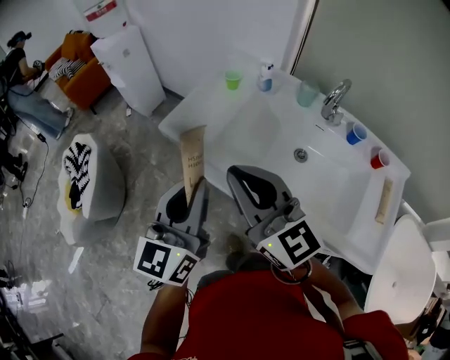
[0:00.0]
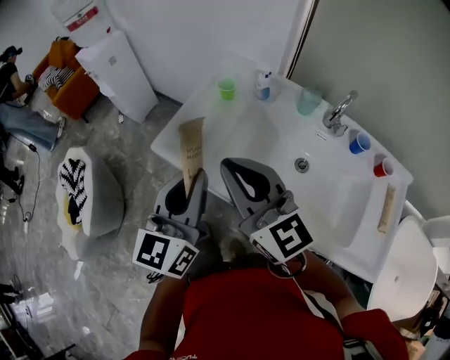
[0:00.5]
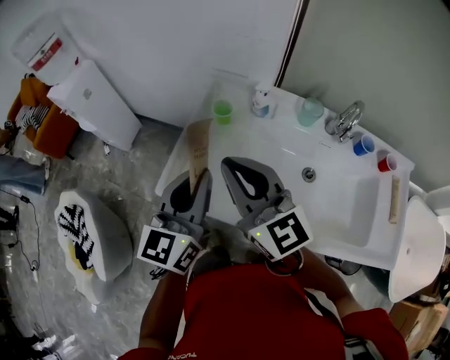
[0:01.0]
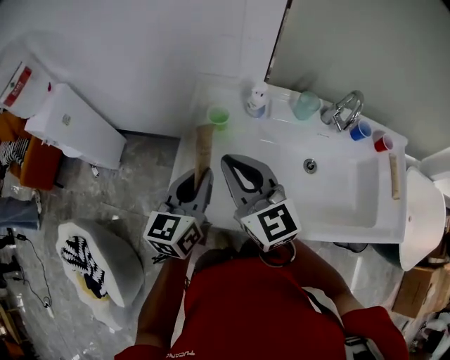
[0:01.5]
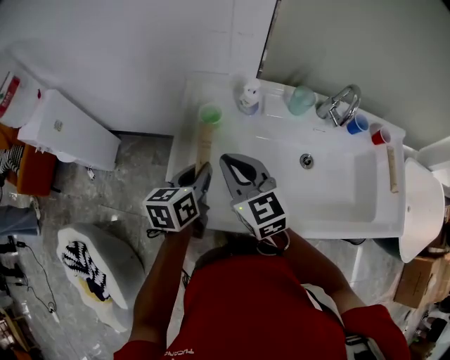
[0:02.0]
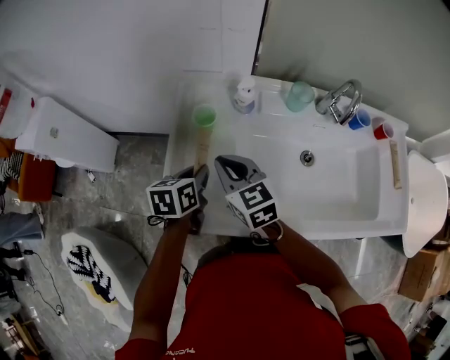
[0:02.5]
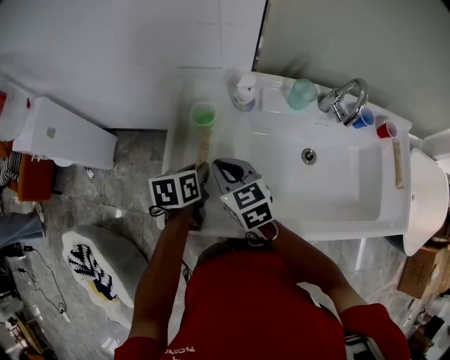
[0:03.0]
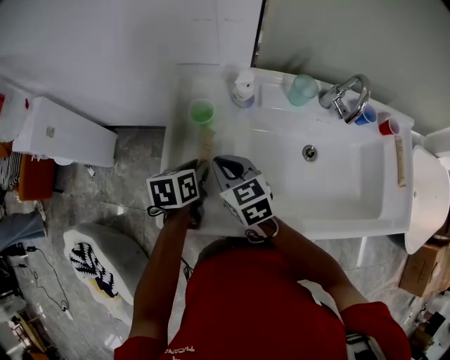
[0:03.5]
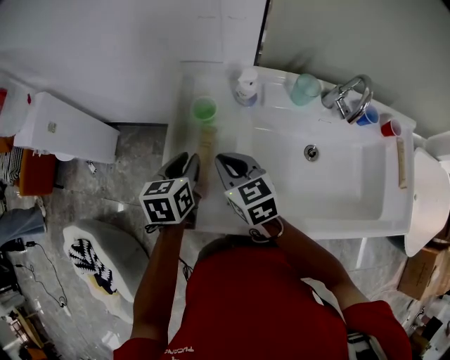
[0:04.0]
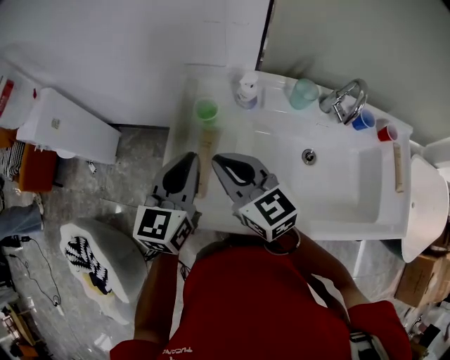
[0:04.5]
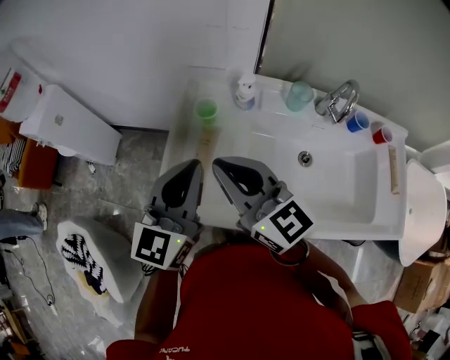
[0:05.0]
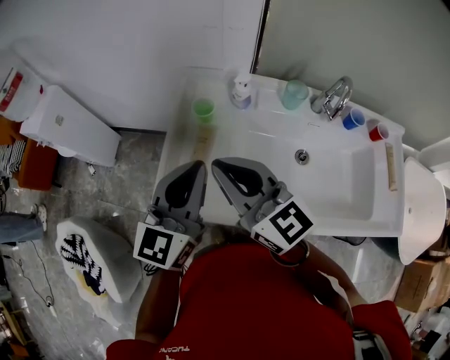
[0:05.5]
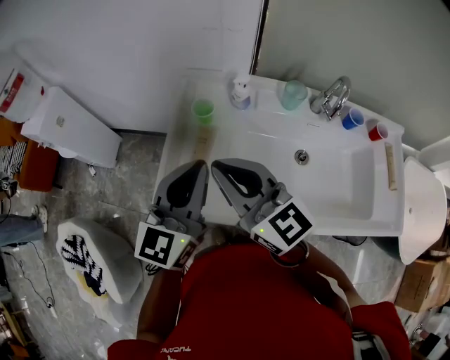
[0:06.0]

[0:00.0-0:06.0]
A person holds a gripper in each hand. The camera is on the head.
0:00.0 to 0:02.0: The left gripper changes place by some 40 cm, and angles its fingers downward, by about 30 degrees. The right gripper ends up roughly 35 cm from where it was, and swivels some 40 degrees.
0:02.0 to 0:04.0: The right gripper goes approximately 10 cm downward.
0:04.0 to 0:06.0: The two grippers go approximately 20 cm upward and backward. The right gripper angles its fingers upward, by approximately 30 degrees, while the left gripper tips its fingers upward by about 40 degrees, and closes up.

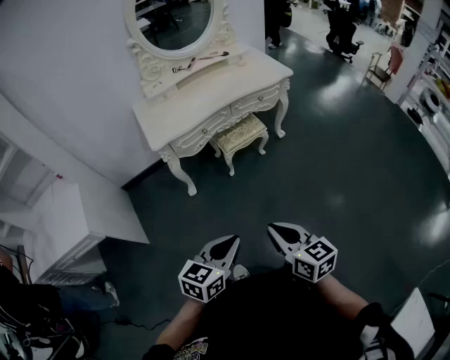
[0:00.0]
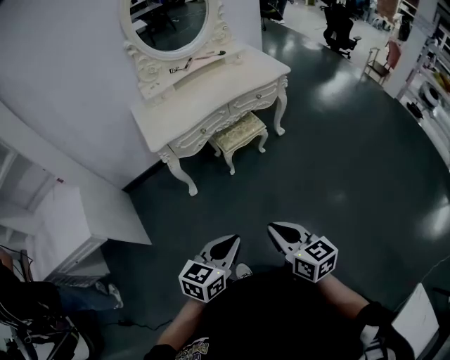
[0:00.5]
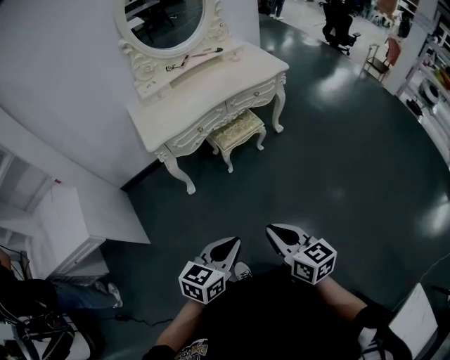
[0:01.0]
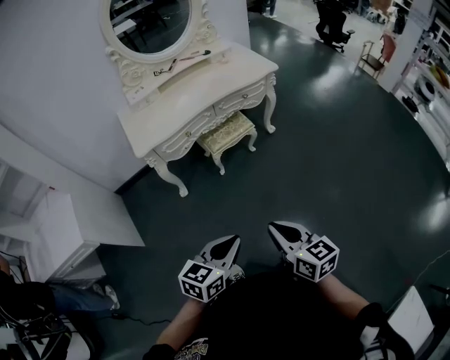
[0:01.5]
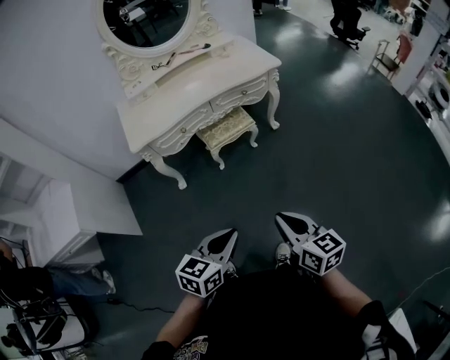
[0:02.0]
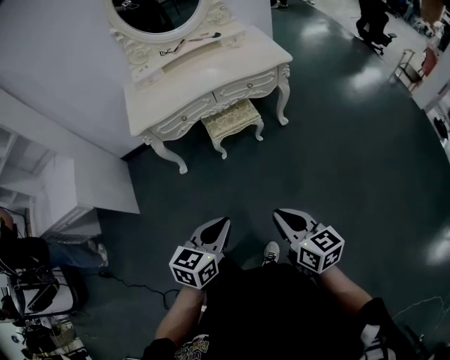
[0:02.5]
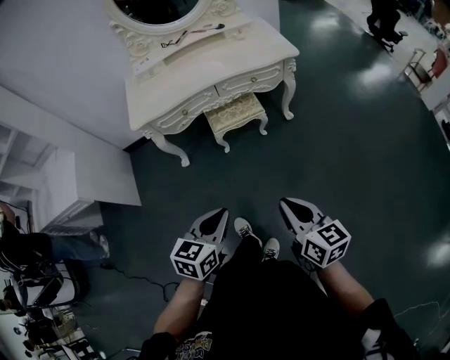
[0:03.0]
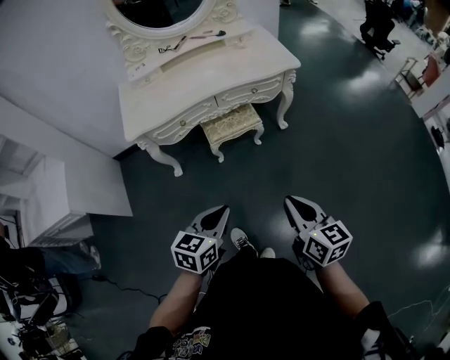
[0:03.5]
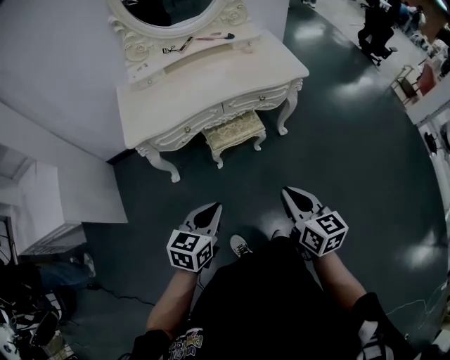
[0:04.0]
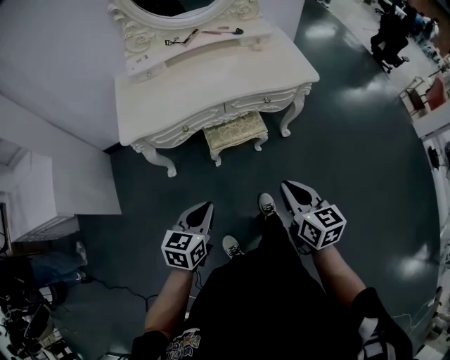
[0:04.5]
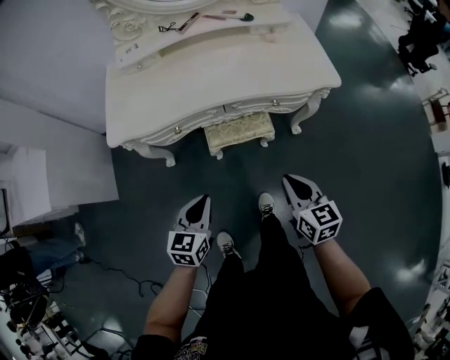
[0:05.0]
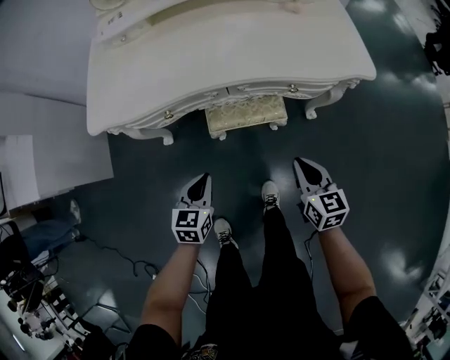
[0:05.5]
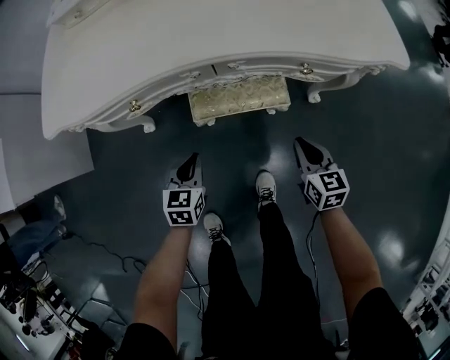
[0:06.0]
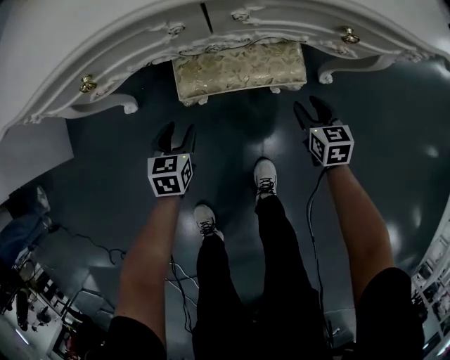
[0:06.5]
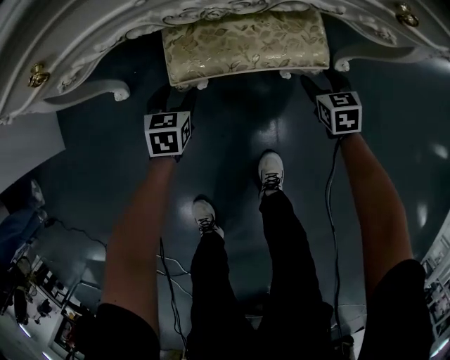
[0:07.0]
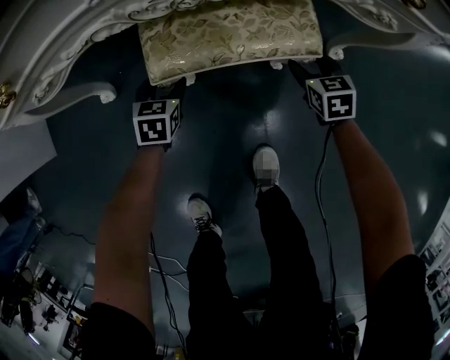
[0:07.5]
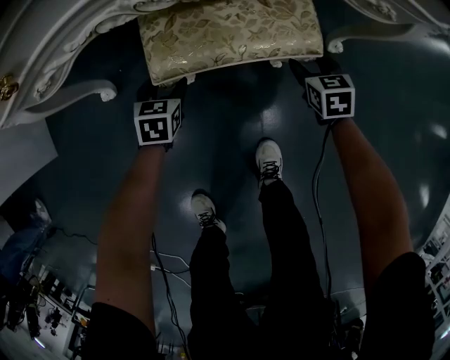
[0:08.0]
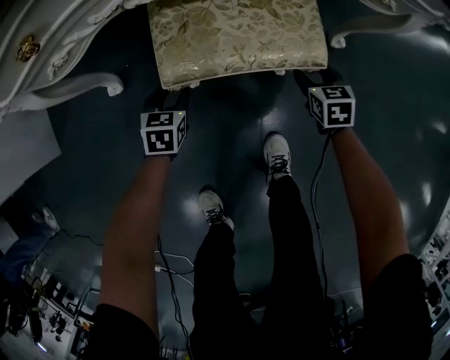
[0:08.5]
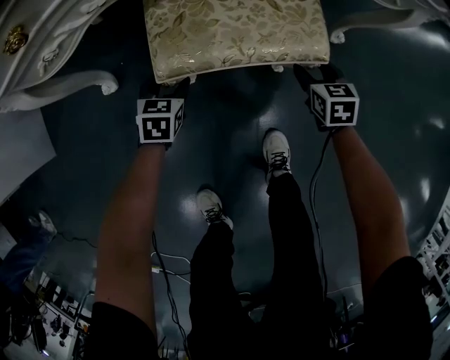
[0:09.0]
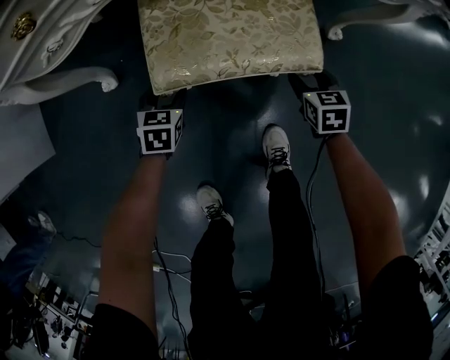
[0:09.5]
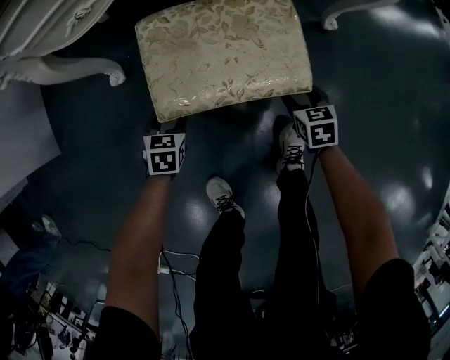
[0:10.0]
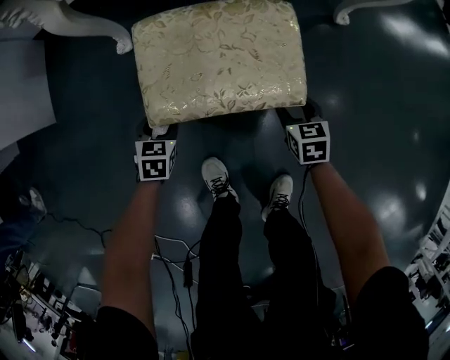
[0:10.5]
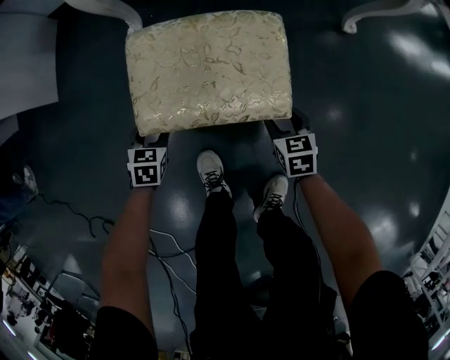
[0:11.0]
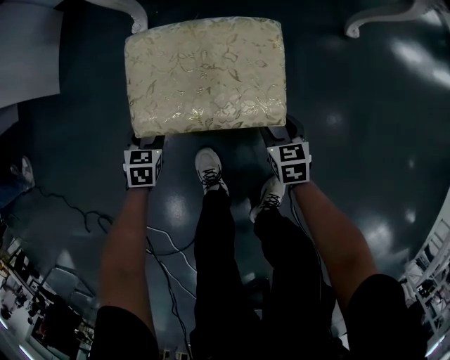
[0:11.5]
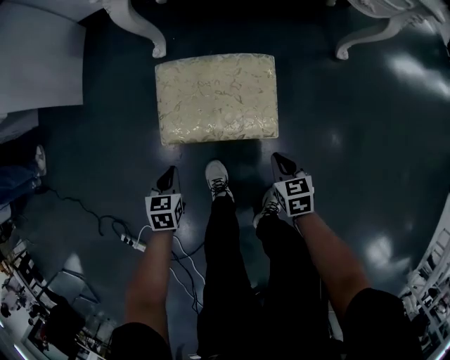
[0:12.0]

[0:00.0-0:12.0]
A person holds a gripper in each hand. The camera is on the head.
0:00.0 to 0:02.0: Both grippers travel together to the right and forward, approximately 15 cm.
0:02.0 to 0:04.0: Both grippers travel together forward, about 20 cm.
0:04.0 to 0:06.0: Both grippers travel together downward and forward, about 50 cm. The right gripper rotates approximately 20 degrees; the left gripper changes its angle by approximately 30 degrees.
0:06.0 to 0:08.0: The grippers both shift downward and forward by approximately 30 cm. The left gripper opens; the right gripper opens up.
0:08.0 to 0:10.0: The grippers move only a little.
0:10.0 to 0:12.0: The grippers both shift upward and backward by approximately 15 cm. The right gripper closes; the left gripper closes its fingers.

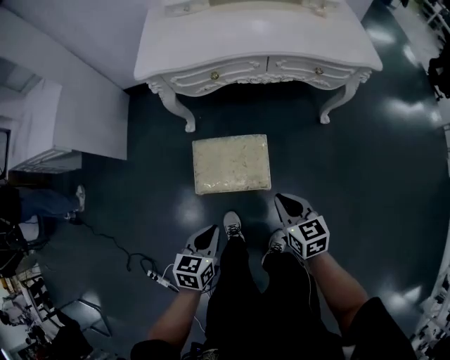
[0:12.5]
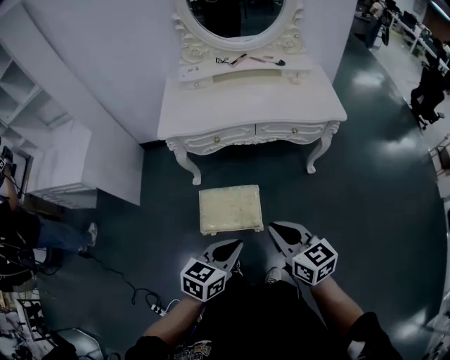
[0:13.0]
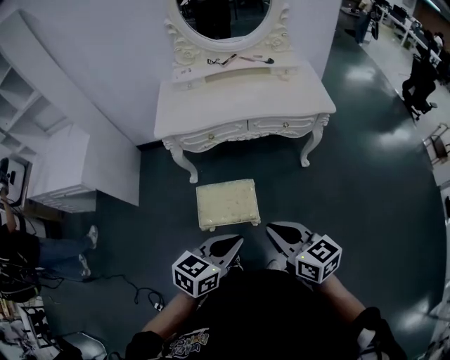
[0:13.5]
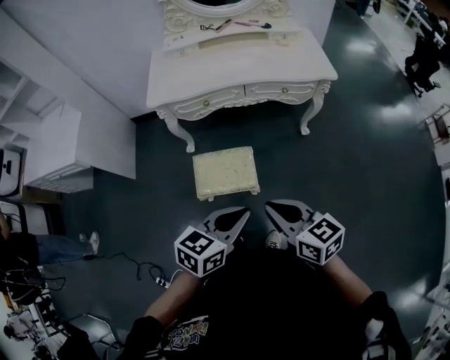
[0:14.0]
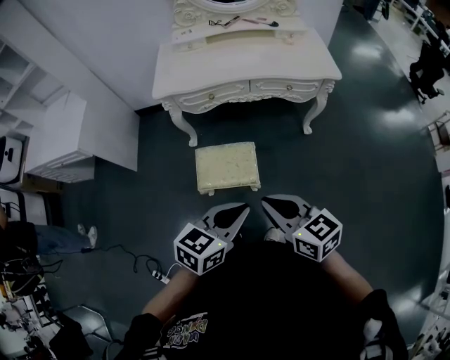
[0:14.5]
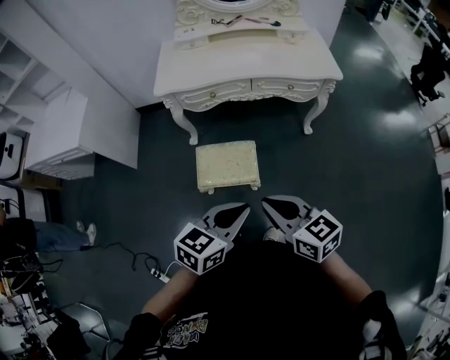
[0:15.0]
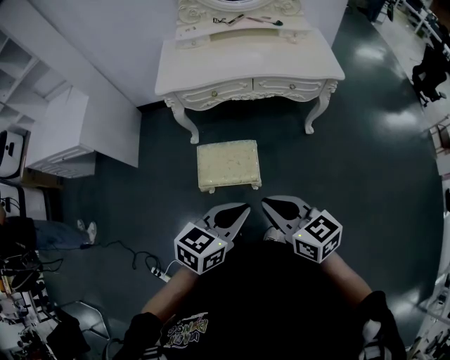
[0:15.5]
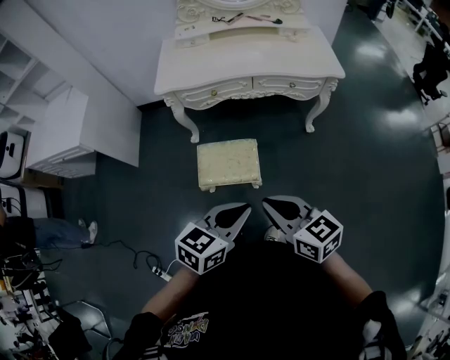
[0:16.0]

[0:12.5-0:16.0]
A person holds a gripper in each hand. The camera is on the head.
0:12.5 to 0:14.5: The right gripper is displaced upward by some 25 cm. The left gripper goes roughly 30 cm upward and to the right, and swivels some 30 degrees.
0:14.5 to 0:16.0: The two grippers keep their place.

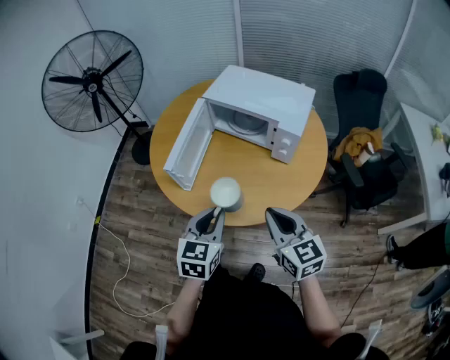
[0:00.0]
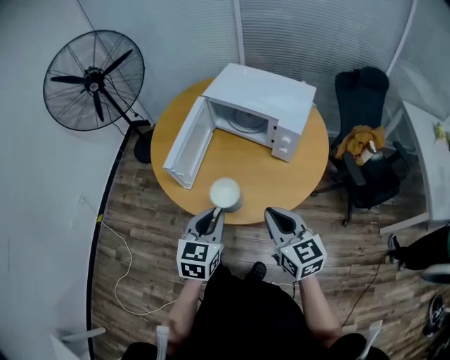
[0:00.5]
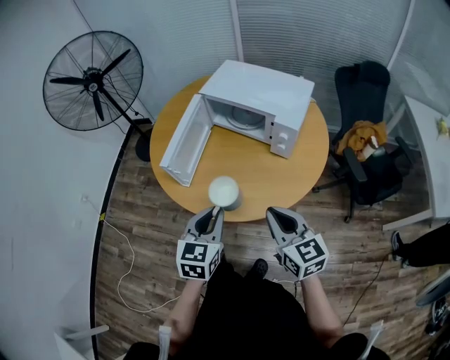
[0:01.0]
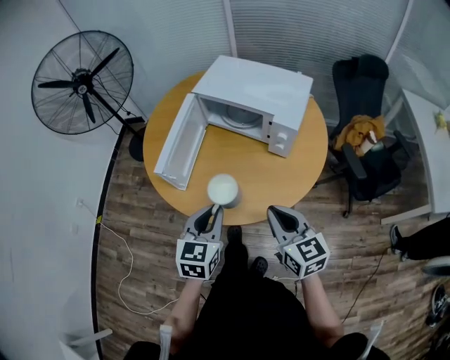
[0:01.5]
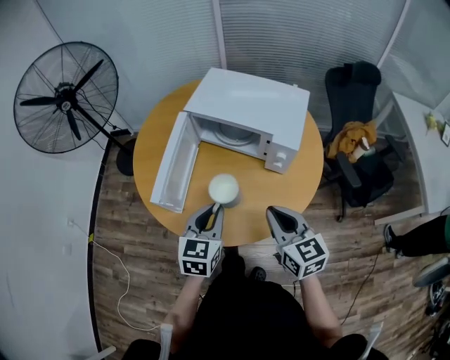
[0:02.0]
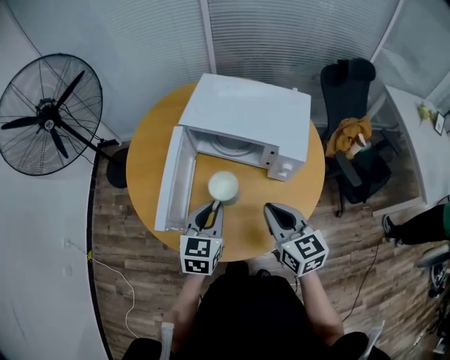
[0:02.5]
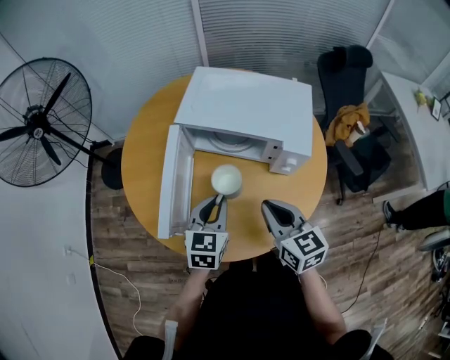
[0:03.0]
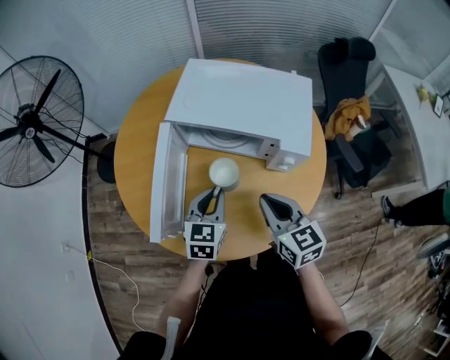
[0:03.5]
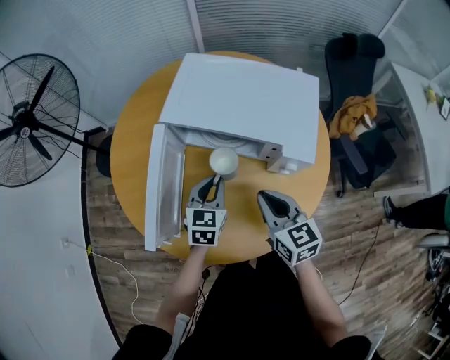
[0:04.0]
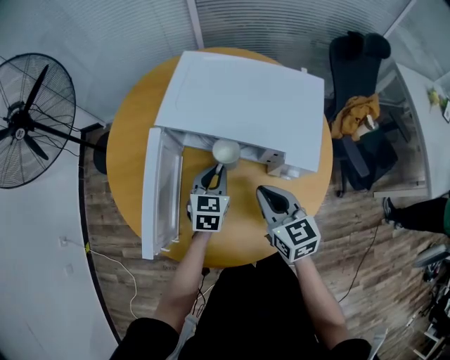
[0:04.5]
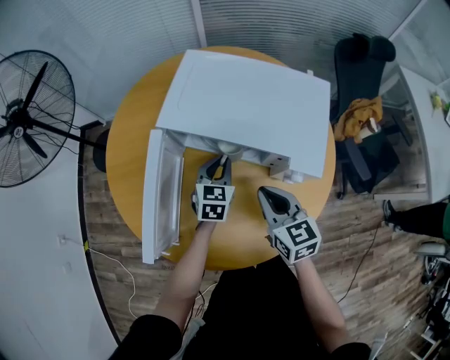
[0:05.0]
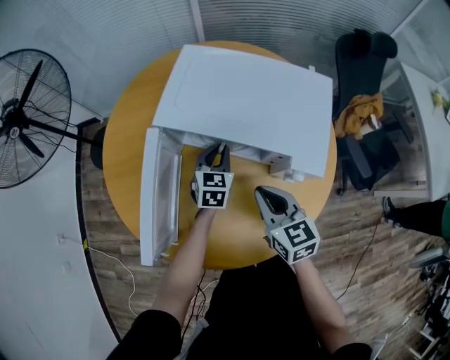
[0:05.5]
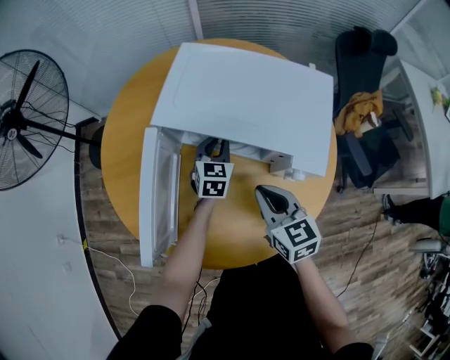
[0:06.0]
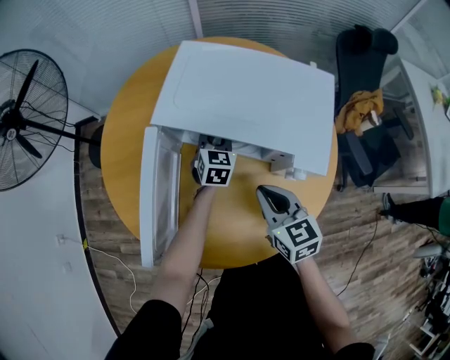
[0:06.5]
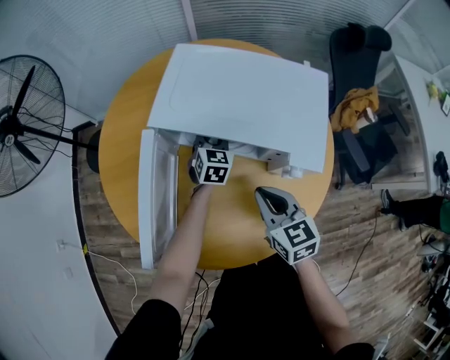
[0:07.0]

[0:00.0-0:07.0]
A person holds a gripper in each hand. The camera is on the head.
0:00.0 to 0:02.0: Both grippers move forward, some 10 cm.
0:02.0 to 0:03.5: The left gripper heads forward and downward, covering roughly 15 cm. The right gripper is displaced forward by some 10 cm.
0:03.5 to 0:05.0: The right gripper is displaced forward and downward by some 10 cm; the left gripper moves forward and downward, approximately 15 cm.
0:05.0 to 0:07.0: The left gripper moves forward, some 10 cm.
